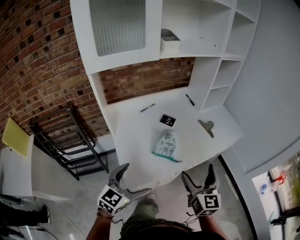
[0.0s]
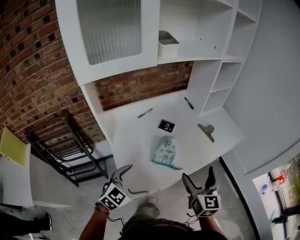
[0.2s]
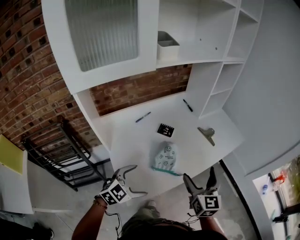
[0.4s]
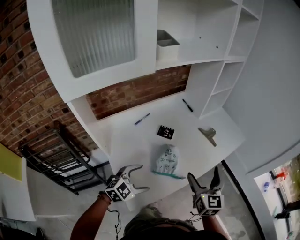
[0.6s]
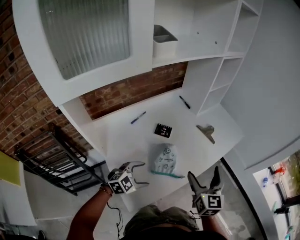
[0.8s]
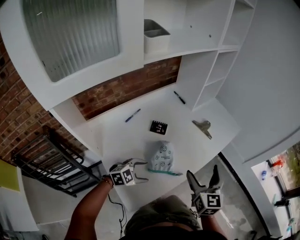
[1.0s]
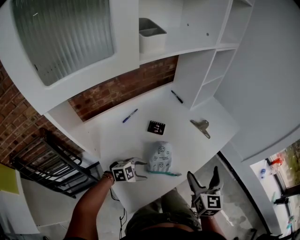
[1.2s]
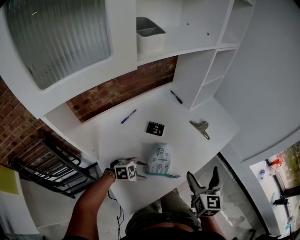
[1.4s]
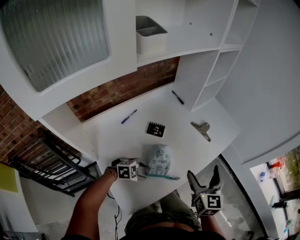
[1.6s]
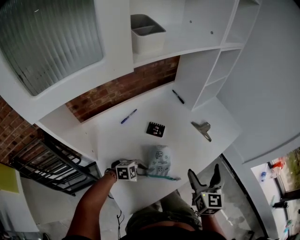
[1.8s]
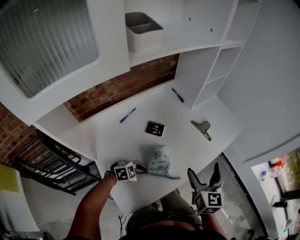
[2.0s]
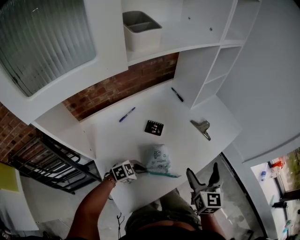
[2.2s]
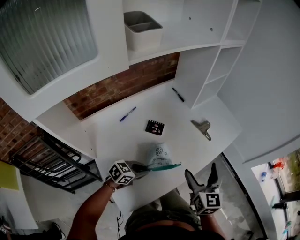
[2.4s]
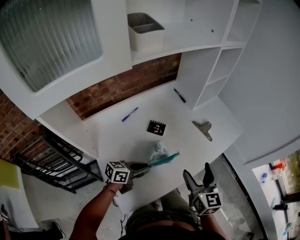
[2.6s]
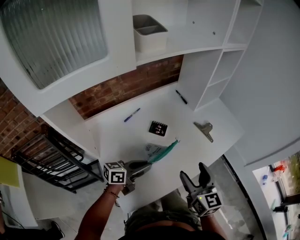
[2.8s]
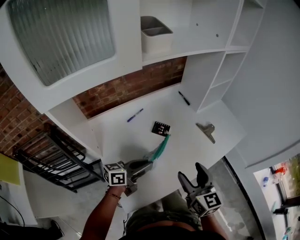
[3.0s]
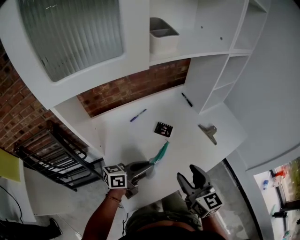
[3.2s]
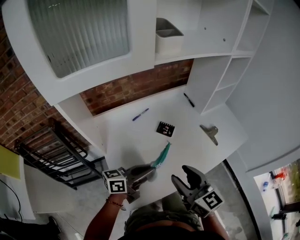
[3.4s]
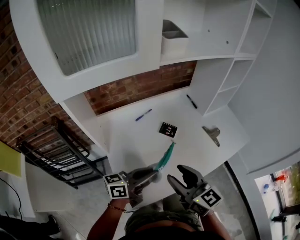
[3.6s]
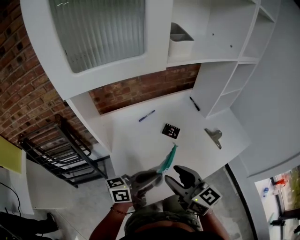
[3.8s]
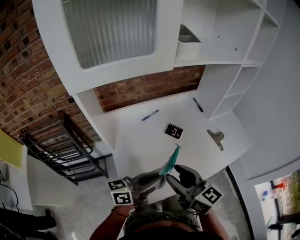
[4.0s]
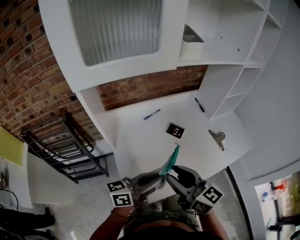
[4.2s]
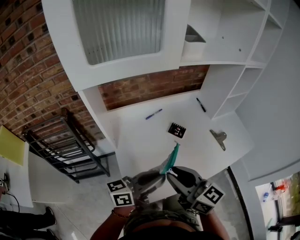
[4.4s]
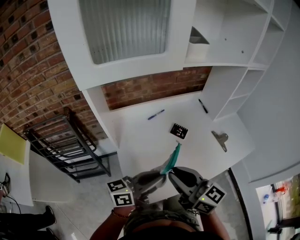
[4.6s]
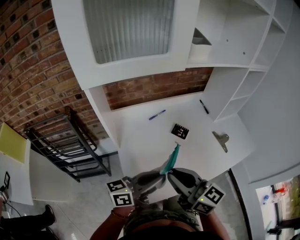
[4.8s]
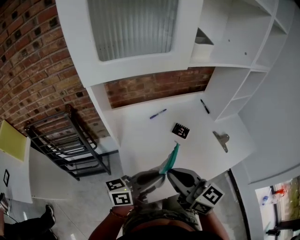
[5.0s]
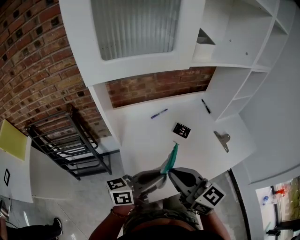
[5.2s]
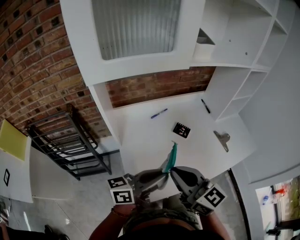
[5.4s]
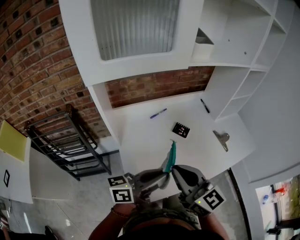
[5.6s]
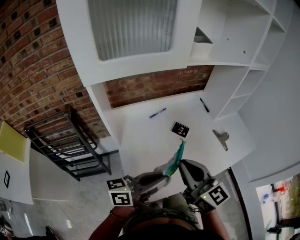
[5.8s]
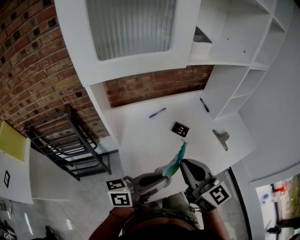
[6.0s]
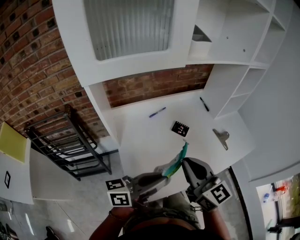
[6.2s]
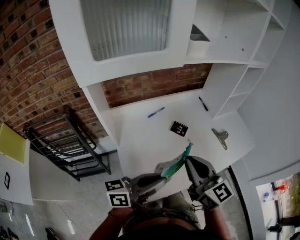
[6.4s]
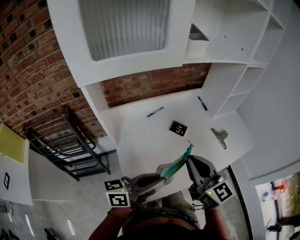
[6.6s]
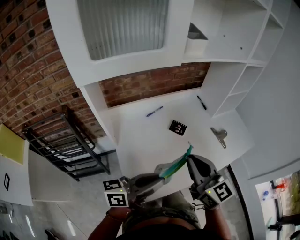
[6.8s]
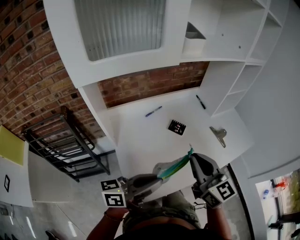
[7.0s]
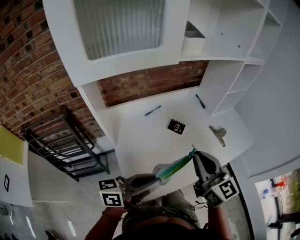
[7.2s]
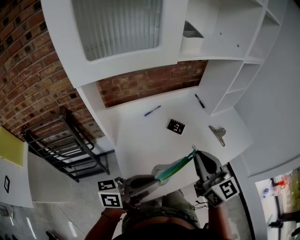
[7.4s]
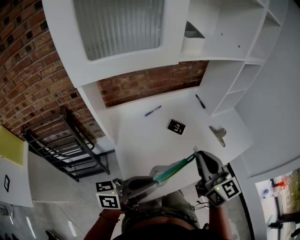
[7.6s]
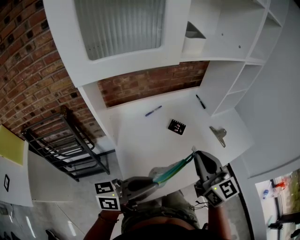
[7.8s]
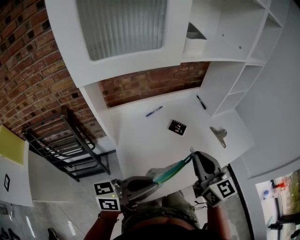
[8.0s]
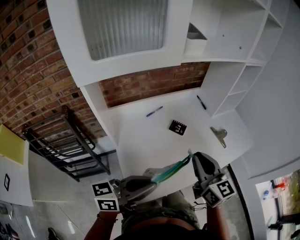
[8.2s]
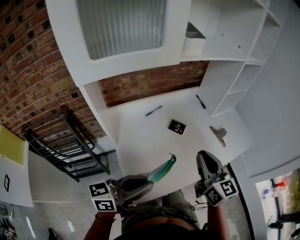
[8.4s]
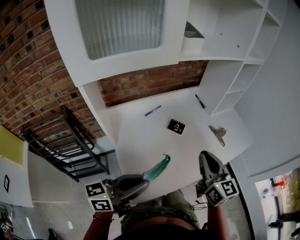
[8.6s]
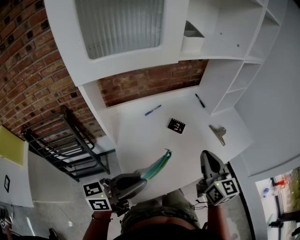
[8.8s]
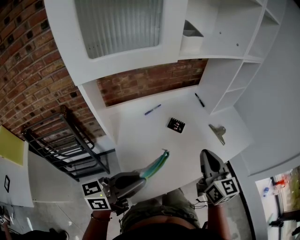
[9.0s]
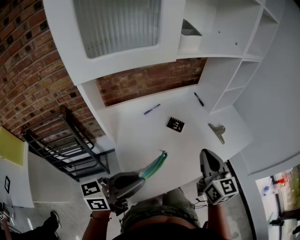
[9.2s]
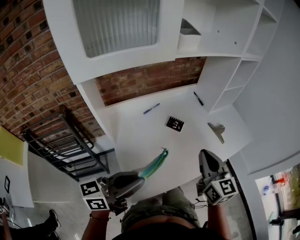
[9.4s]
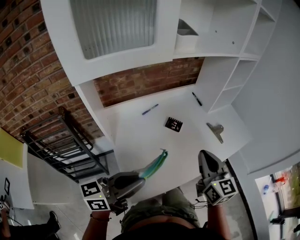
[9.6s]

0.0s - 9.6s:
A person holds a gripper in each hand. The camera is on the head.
0.0s - 1.6s: The left gripper goes roughly 25 cm downward, angles its fingers downward, by approximately 40 degrees, and closes its fingers. Meanwhile the right gripper shifts by about 15 cm.
1.6s - 3.2s: The right gripper changes place by about 10 cm, turns by roughly 30 degrees, and closes its fingers, while the left gripper travels upward by about 20 cm, tilts its fingers approximately 50 degrees upward, and closes its fingers.
3.2s - 4.8s: The right gripper shifts roughly 15 cm to the left and upward, and rotates about 30 degrees, while the left gripper is displaced upward and backward by some 10 cm.
4.8s - 6.4s: The right gripper goes roughly 5 cm to the right, and turns by approximately 20 degrees.
6.4s - 8.0s: There are only small adjustments of the grippers.
8.0s - 9.6s: The grippers make only small movements.

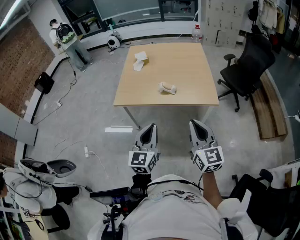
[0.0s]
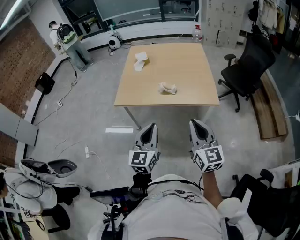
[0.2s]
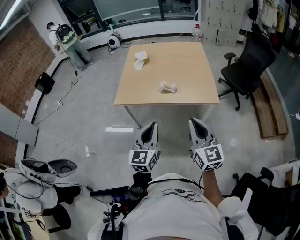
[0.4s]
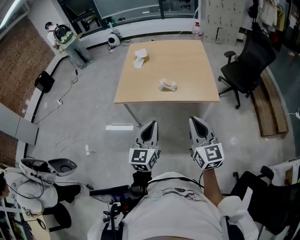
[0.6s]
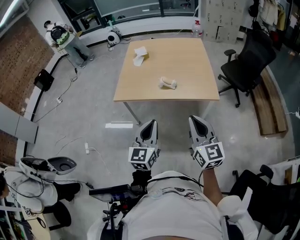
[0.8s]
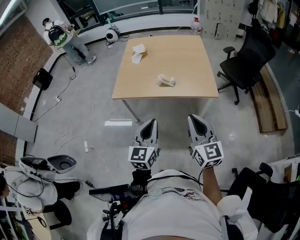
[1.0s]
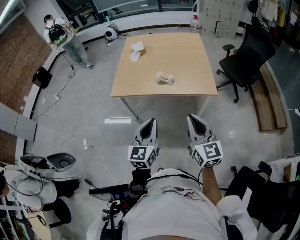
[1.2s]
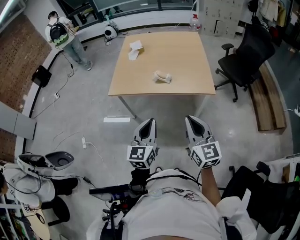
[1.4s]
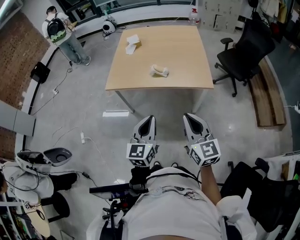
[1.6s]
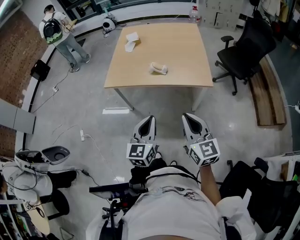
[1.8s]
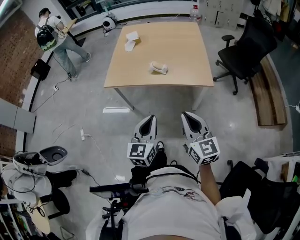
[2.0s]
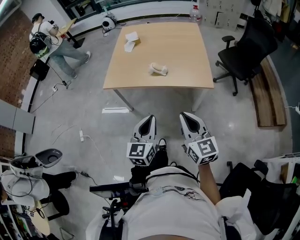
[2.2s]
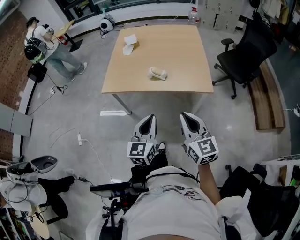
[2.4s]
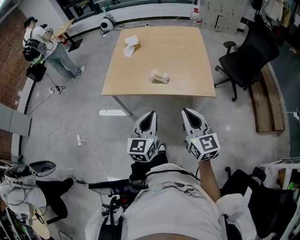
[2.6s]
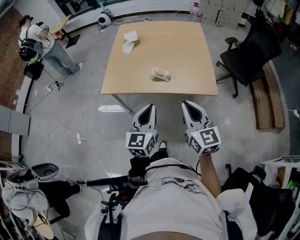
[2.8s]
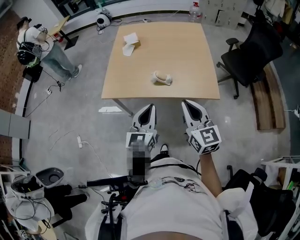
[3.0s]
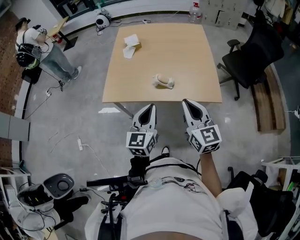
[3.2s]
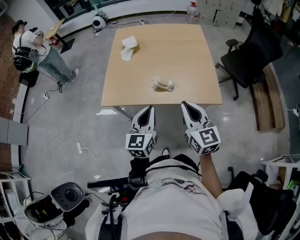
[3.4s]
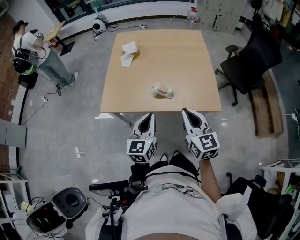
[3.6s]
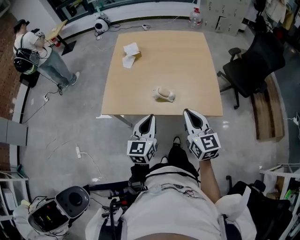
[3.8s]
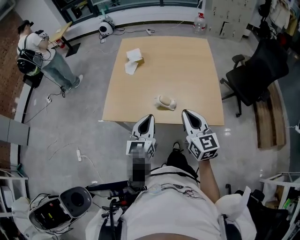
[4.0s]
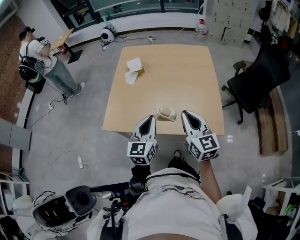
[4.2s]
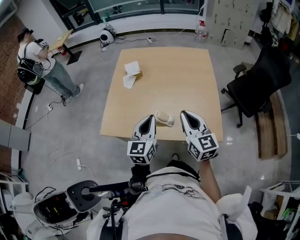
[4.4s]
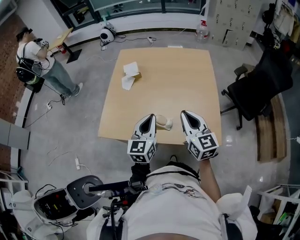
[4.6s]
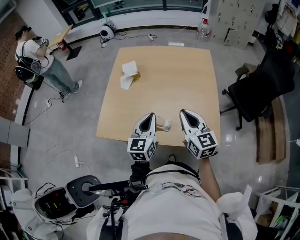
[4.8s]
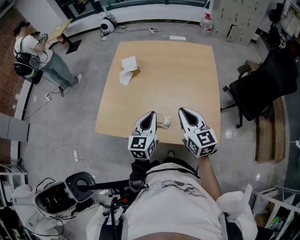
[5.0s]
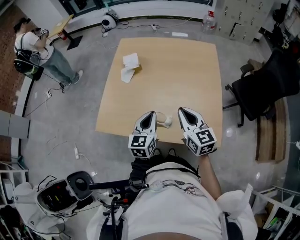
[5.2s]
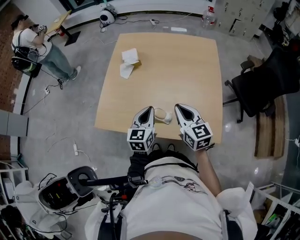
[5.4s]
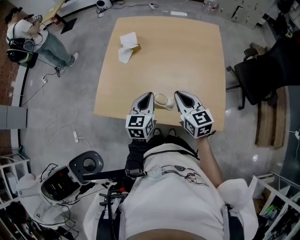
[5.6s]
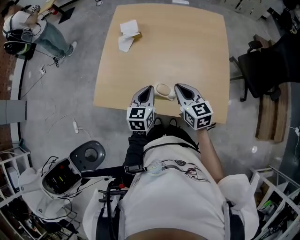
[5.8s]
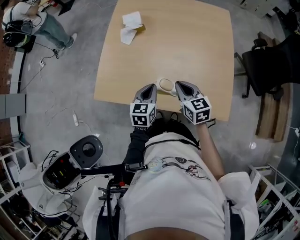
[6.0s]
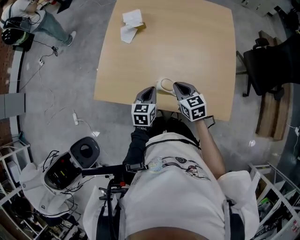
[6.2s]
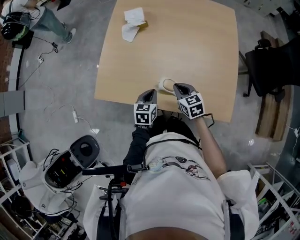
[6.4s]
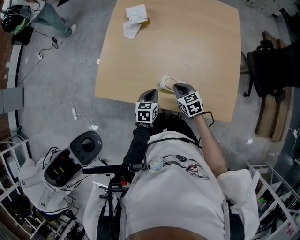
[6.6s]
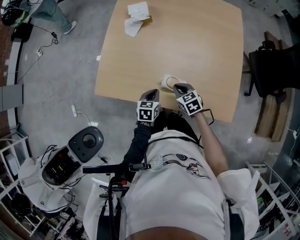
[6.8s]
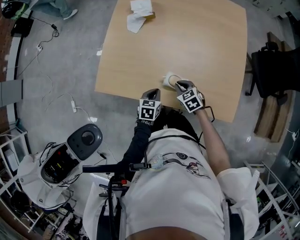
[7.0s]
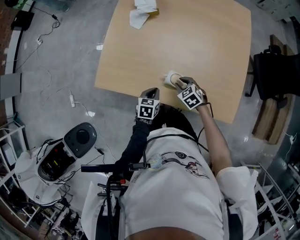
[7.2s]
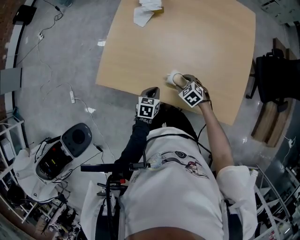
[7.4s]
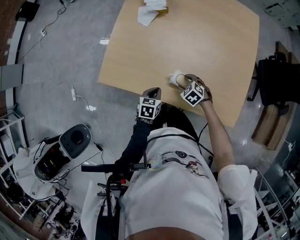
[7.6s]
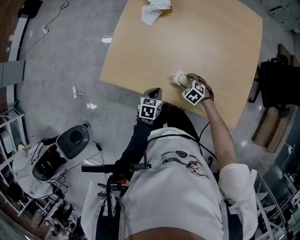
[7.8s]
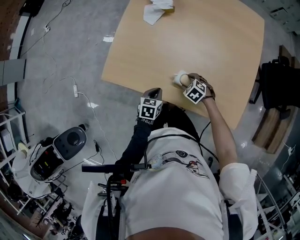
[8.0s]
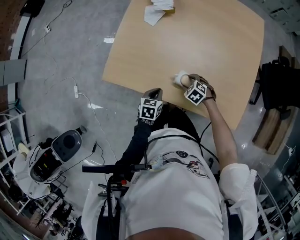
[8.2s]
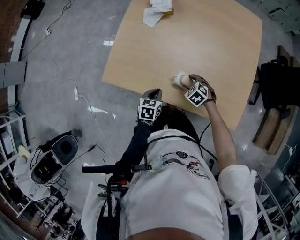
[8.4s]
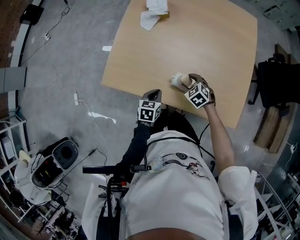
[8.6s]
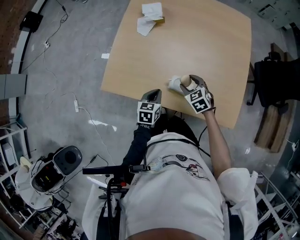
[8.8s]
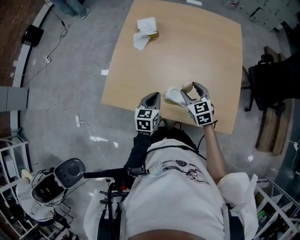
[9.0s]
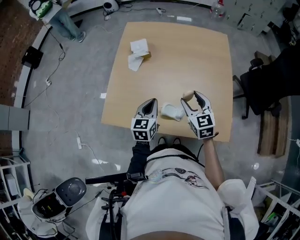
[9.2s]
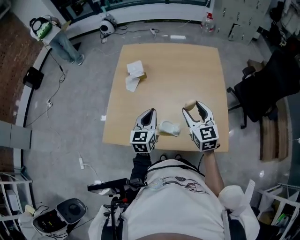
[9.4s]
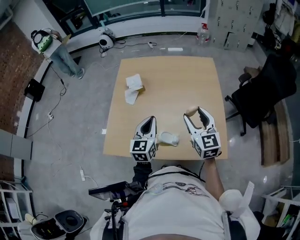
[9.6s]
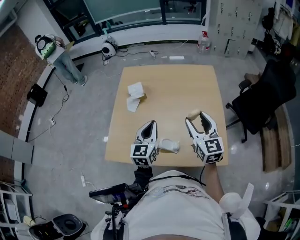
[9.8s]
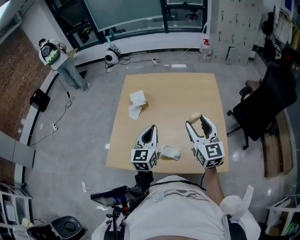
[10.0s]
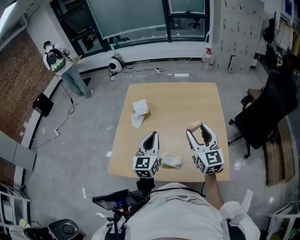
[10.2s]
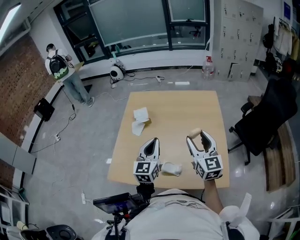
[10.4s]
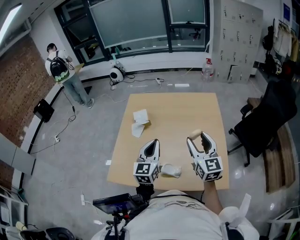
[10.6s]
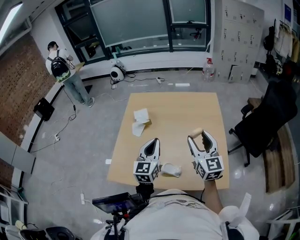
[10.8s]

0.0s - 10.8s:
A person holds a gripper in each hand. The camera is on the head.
0.0s - 1.6s: The right gripper shifts by approximately 5 cm; the left gripper moves to the right, some 5 cm.
1.6s - 3.0s: Both grippers move forward, some 20 cm.
3.0s - 4.6s: The two grippers go approximately 25 cm forward.
4.6s - 6.2s: The right gripper goes some 20 cm downward and forward, and changes its angle by roughly 30 degrees; the left gripper moves downward, roughly 20 cm, and changes its angle by some 30 degrees.
6.2s - 7.8s: The right gripper travels downward by about 20 cm, angles its fingers downward, by roughly 30 degrees, and opens. Meanwhile the left gripper travels downward and to the left by some 15 cm.
7.8s - 9.2s: Both grippers move upward, about 25 cm. The right gripper angles its fingers upward, by some 40 degrees; the left gripper changes its angle by some 30 degrees.
9.2s - 10.8s: The left gripper travels upward by approximately 15 cm, and rotates roughly 20 degrees, while the right gripper moves upward and to the right, roughly 15 cm, and rotates about 30 degrees.

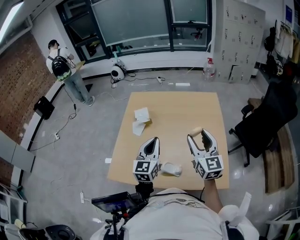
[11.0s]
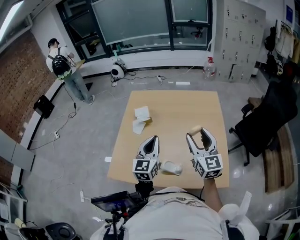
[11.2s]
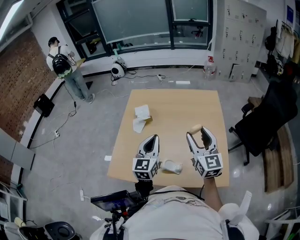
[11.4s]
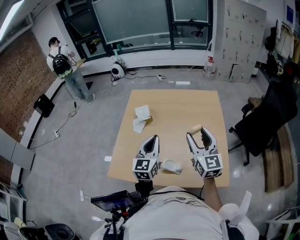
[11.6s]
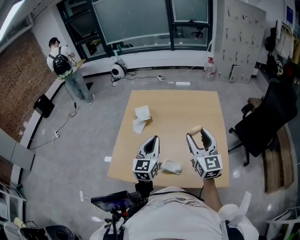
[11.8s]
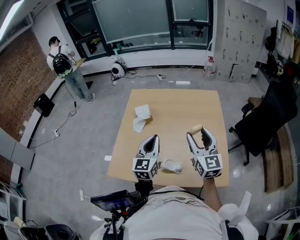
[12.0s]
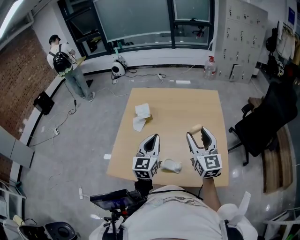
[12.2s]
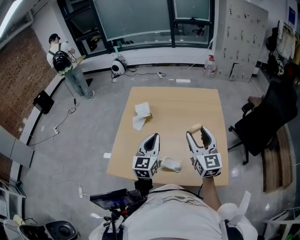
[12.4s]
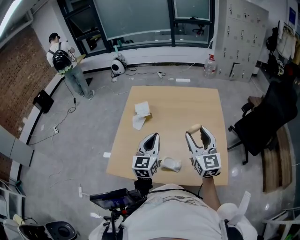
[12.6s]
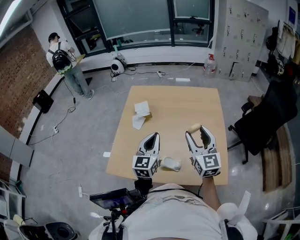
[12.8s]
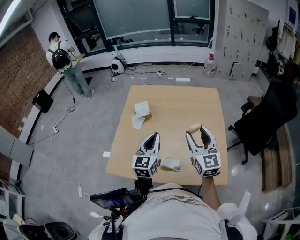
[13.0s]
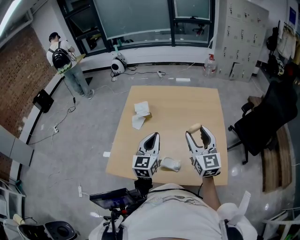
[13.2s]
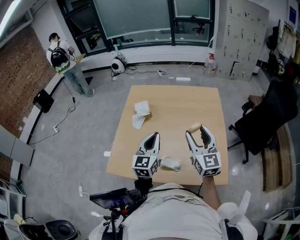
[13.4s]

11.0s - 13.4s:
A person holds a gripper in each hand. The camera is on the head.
11.0s - 12.2s: The grippers move only a little.
12.2s - 13.4s: Both grippers stay about where they are.

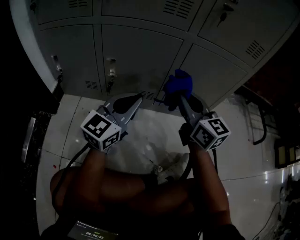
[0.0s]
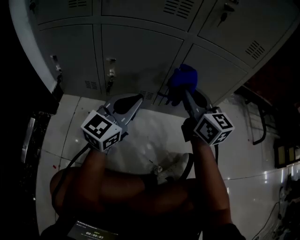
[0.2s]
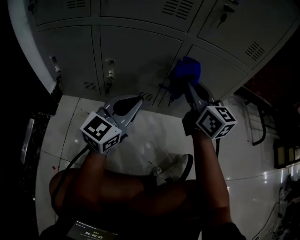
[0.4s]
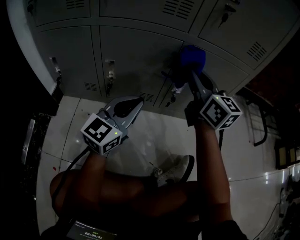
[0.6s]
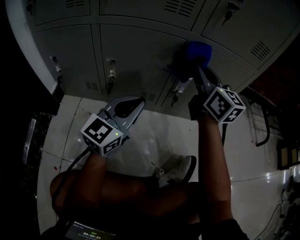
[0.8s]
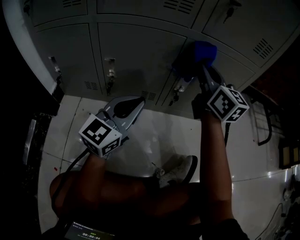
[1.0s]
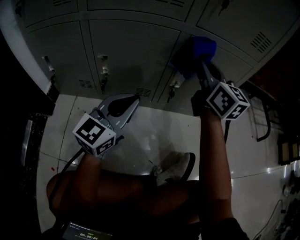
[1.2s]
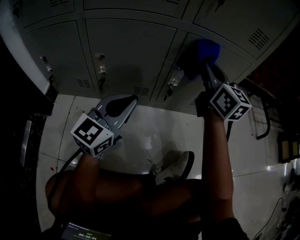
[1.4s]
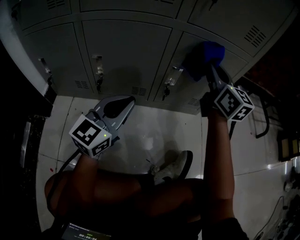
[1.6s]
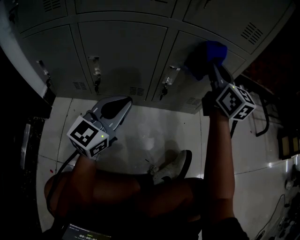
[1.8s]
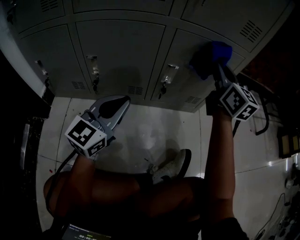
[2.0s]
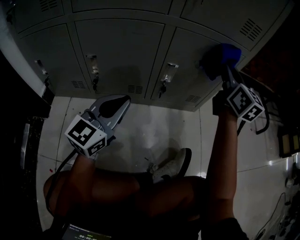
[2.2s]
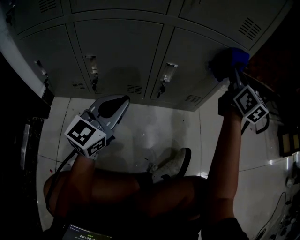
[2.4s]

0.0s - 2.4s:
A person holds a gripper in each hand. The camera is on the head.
0.0s - 1.2s: The right gripper goes approximately 10 cm forward and upward.
1.2s - 2.4s: The right gripper is displaced to the right by approximately 20 cm, and rotates about 20 degrees.
